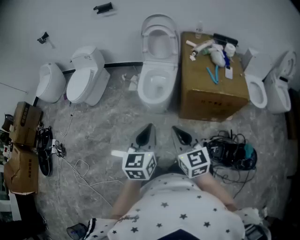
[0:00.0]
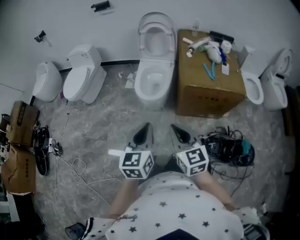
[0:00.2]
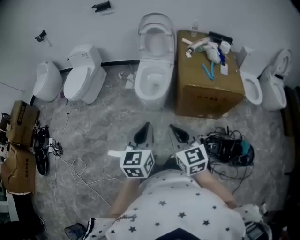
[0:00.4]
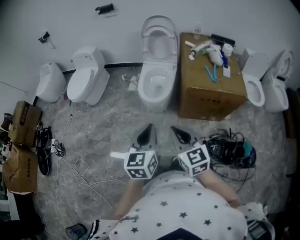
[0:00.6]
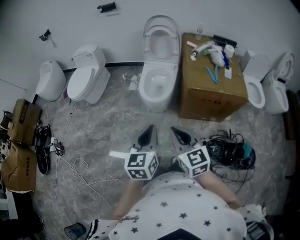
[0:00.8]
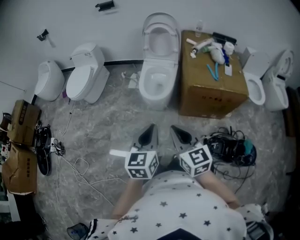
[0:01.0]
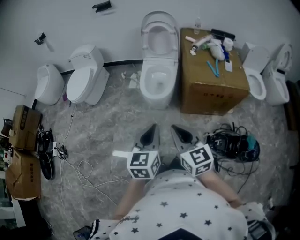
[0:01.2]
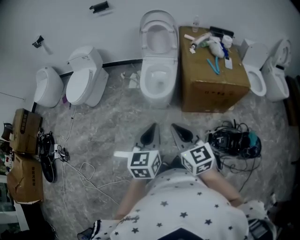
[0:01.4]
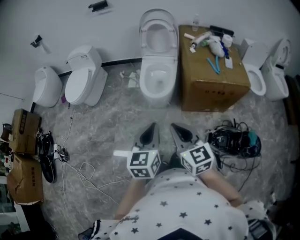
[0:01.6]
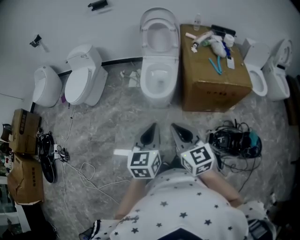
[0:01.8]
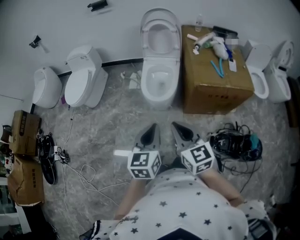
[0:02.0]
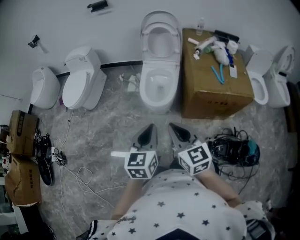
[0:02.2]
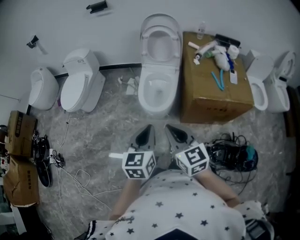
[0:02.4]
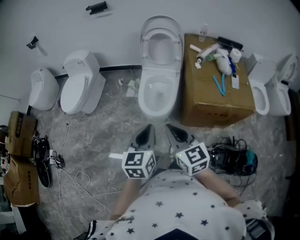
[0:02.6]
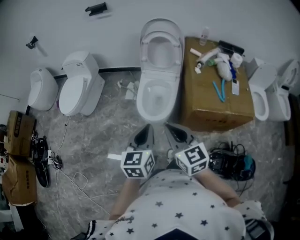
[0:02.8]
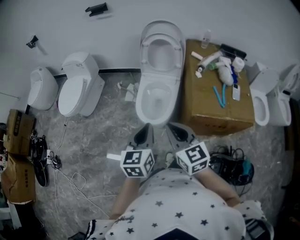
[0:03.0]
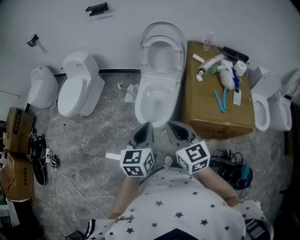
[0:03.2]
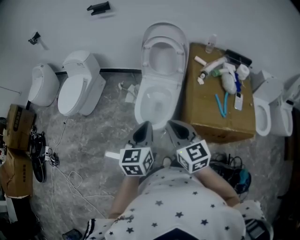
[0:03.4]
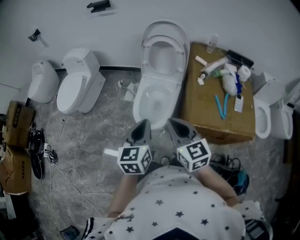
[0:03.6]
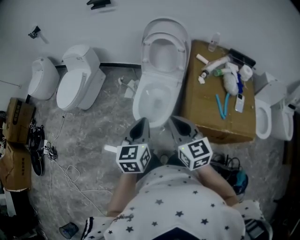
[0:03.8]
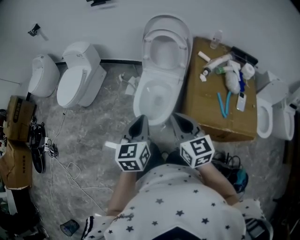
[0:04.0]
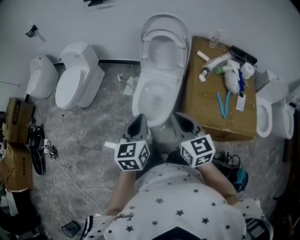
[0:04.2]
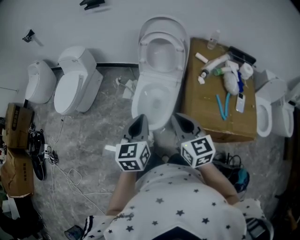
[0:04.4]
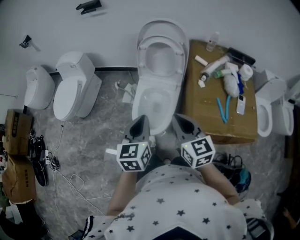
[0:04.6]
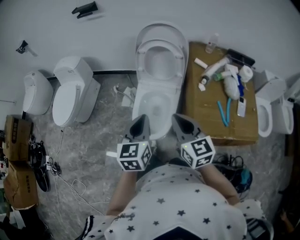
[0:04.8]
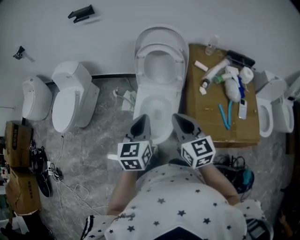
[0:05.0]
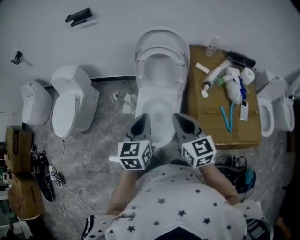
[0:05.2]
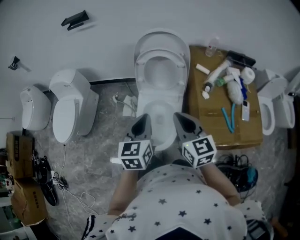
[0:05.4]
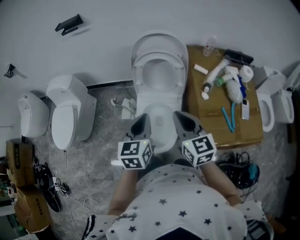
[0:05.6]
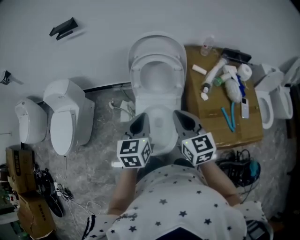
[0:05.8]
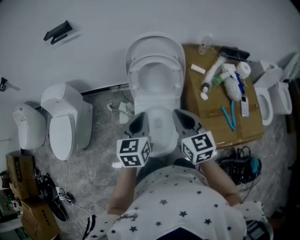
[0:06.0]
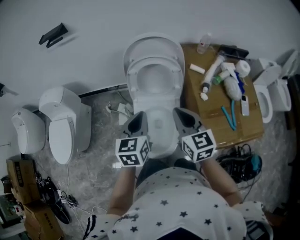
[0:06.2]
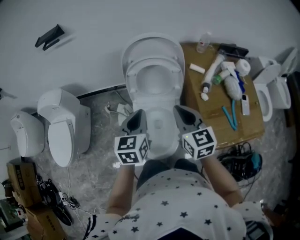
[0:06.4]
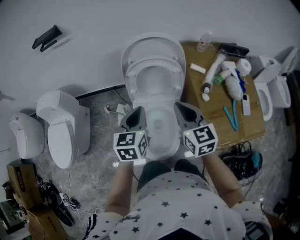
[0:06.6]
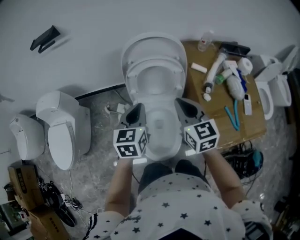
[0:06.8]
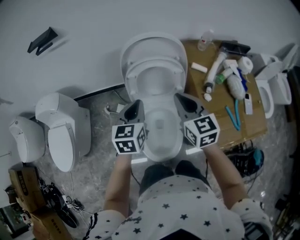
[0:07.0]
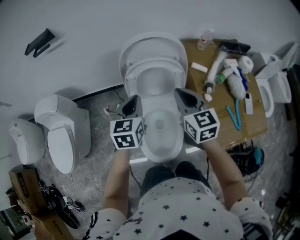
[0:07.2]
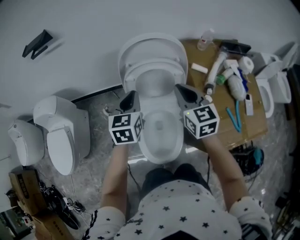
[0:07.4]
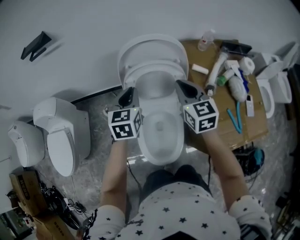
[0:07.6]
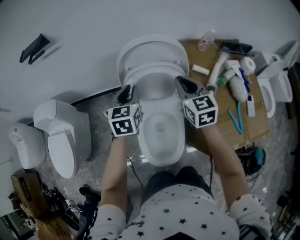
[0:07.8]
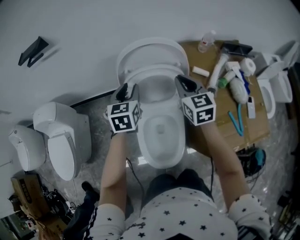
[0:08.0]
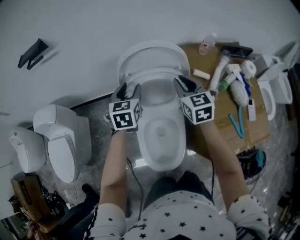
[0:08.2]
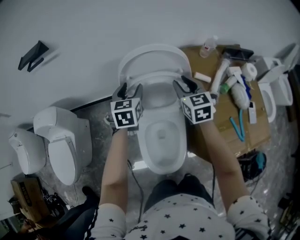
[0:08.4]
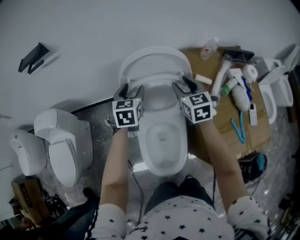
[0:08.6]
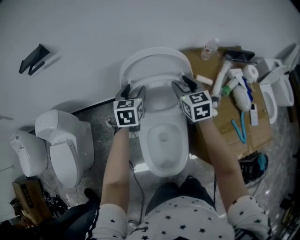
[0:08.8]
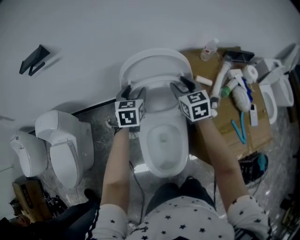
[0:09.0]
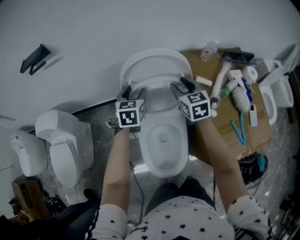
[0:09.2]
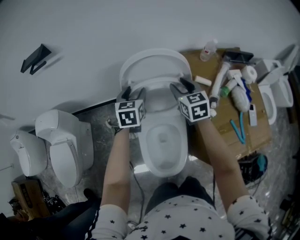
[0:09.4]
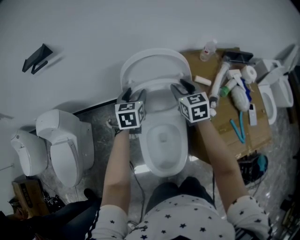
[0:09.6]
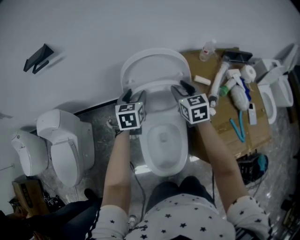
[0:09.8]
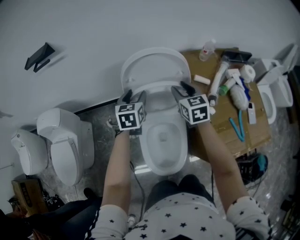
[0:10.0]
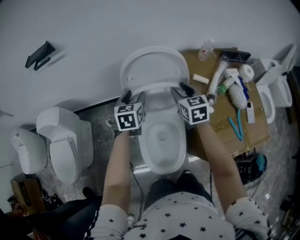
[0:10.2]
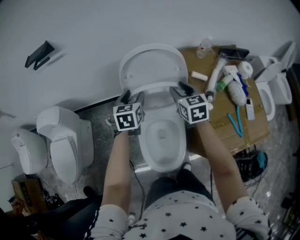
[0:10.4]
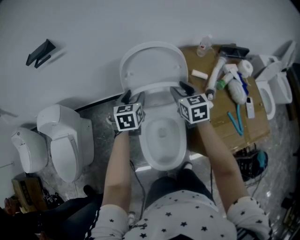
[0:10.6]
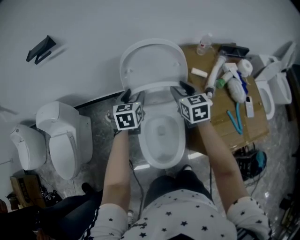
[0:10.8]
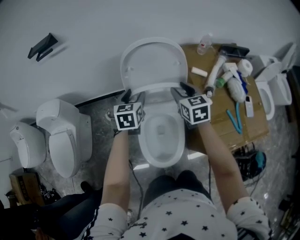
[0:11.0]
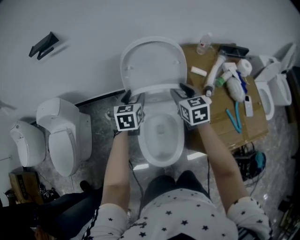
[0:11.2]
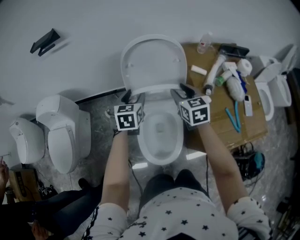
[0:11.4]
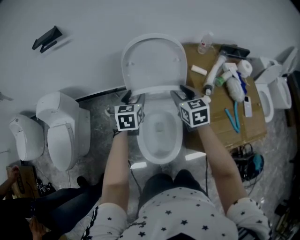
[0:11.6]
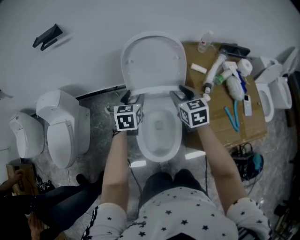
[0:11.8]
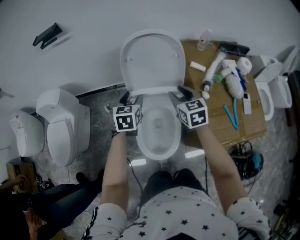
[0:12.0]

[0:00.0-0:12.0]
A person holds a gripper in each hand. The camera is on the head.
0:00.0 to 0:01.6: Both grippers travel together to the left, approximately 5 cm.
0:01.6 to 0:03.0: The grippers both shift forward by some 25 cm.
0:03.0 to 0:04.4: The left gripper travels forward by approximately 10 cm, while the right gripper is displaced forward and to the right by roughly 15 cm.
0:04.4 to 0:06.0: Both grippers move forward, about 25 cm.
0:06.0 to 0:07.6: The grippers both shift forward by approximately 20 cm.
0:07.6 to 0:09.0: The left gripper goes approximately 10 cm forward, and opens its fingers, while the right gripper goes approximately 10 cm forward and downward, and opens up.
0:09.0 to 0:10.4: Both grippers move backward, approximately 5 cm.
0:10.4 to 0:12.0: The grippers both shift backward by approximately 10 cm.

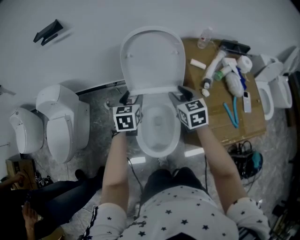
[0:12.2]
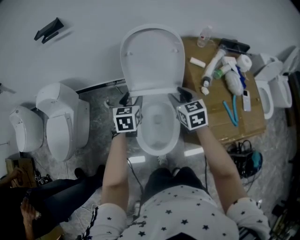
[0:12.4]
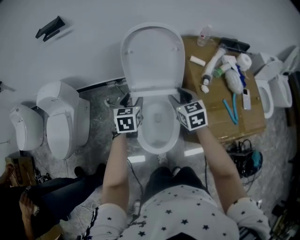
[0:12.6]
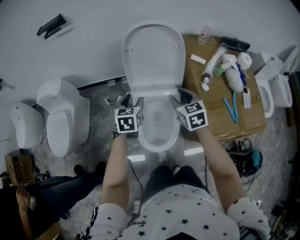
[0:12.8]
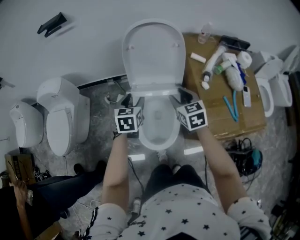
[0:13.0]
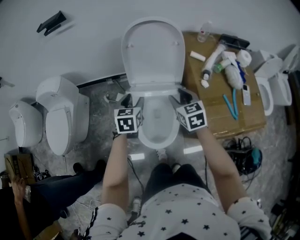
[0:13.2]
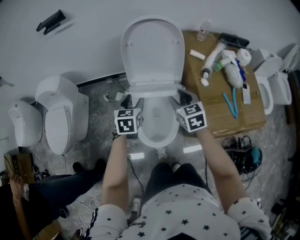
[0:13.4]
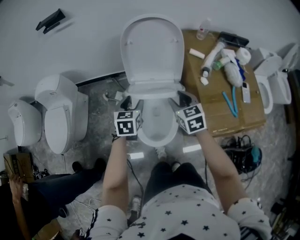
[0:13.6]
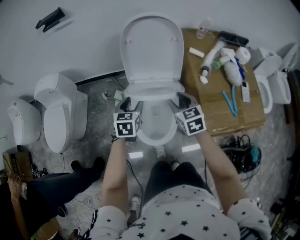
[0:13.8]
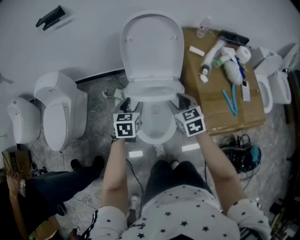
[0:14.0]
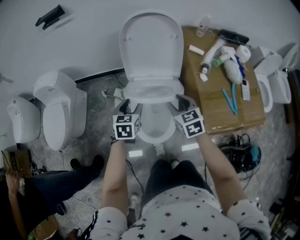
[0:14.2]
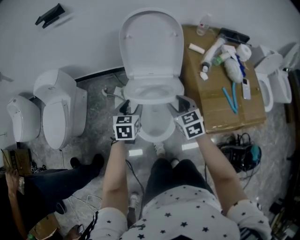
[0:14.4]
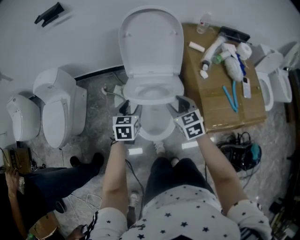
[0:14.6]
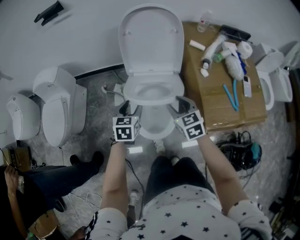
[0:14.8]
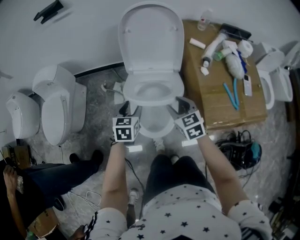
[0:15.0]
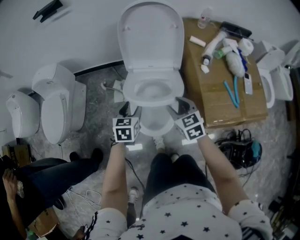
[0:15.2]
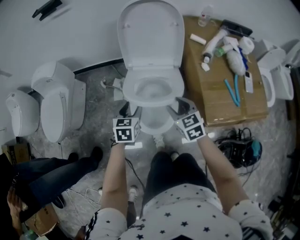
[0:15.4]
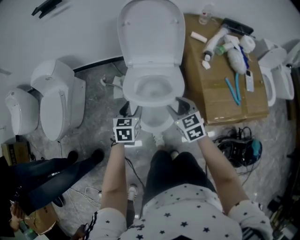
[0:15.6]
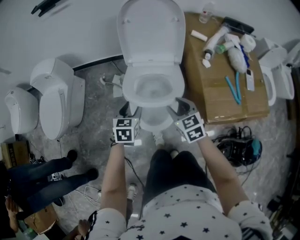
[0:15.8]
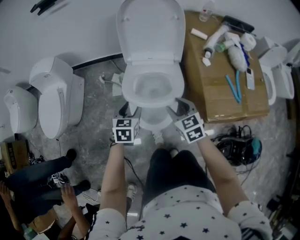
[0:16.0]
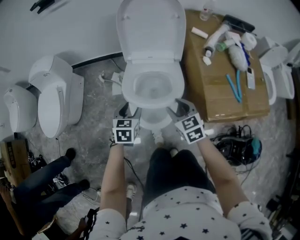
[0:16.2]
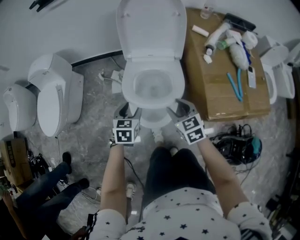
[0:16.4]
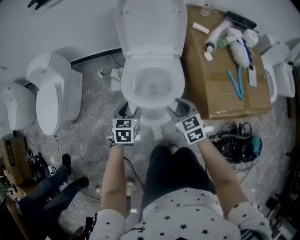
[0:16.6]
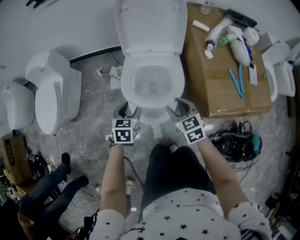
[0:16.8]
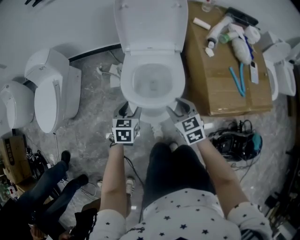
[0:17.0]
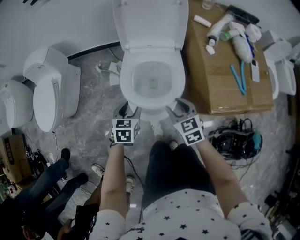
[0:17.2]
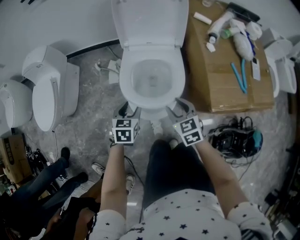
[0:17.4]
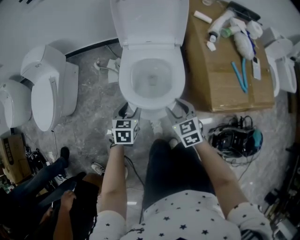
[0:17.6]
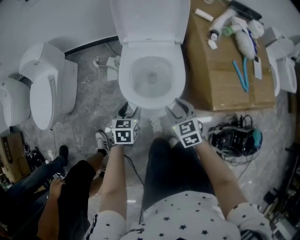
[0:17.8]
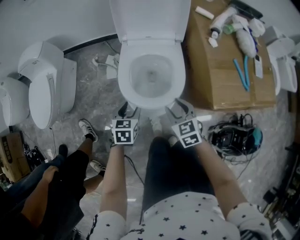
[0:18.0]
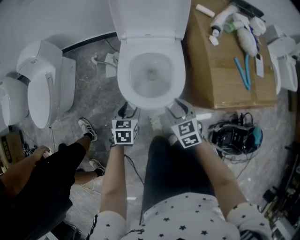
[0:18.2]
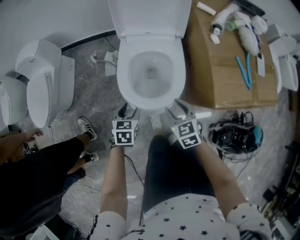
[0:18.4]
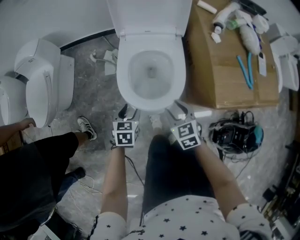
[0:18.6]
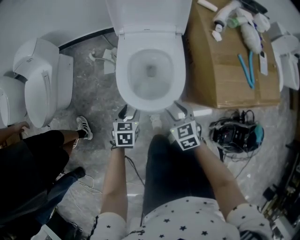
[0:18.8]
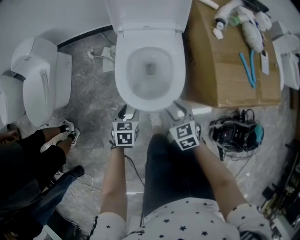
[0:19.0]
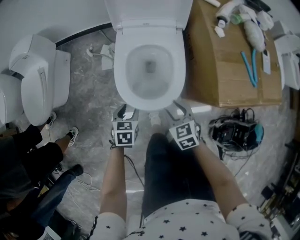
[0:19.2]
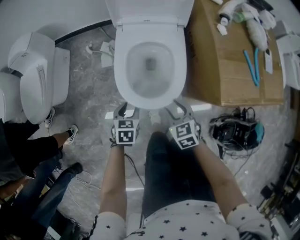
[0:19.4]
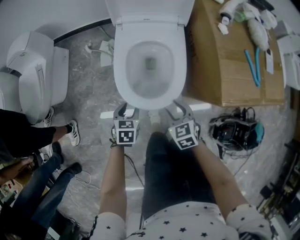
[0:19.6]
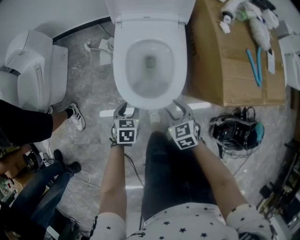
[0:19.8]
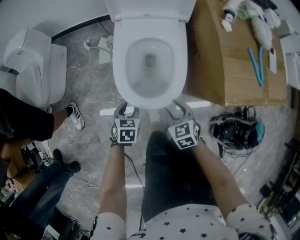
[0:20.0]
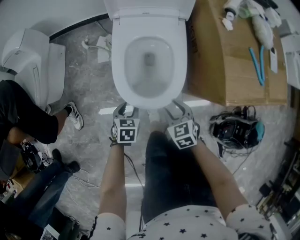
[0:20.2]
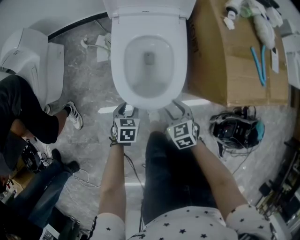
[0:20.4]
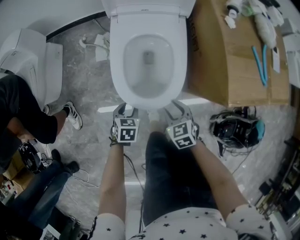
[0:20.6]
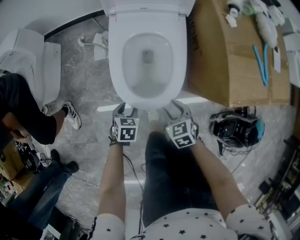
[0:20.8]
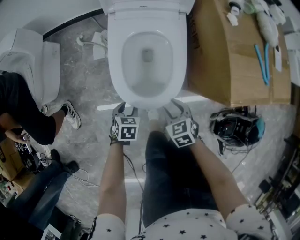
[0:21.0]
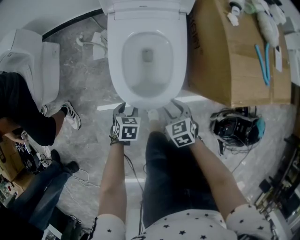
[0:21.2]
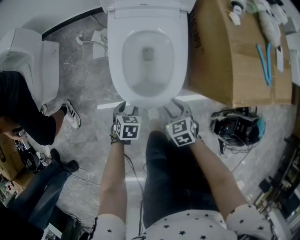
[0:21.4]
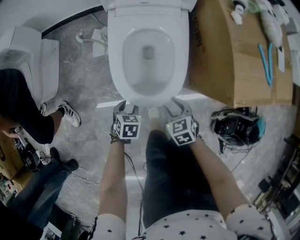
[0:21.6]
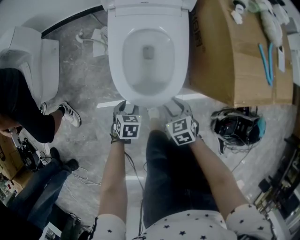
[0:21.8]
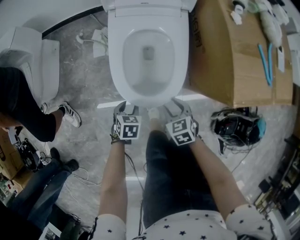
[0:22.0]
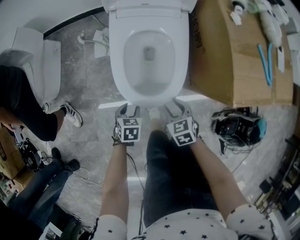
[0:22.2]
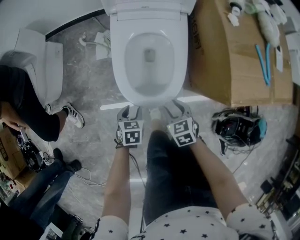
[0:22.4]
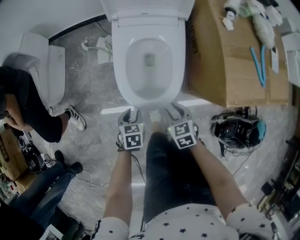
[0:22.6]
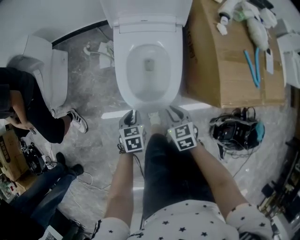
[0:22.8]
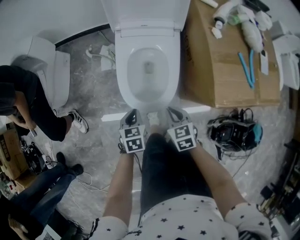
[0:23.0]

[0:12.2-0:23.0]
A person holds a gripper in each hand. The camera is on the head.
0:12.2 to 0:13.8: The grippers both shift backward by approximately 10 cm.
0:13.8 to 0:15.2: The left gripper shifts some 10 cm backward and downward; the right gripper is displaced backward by roughly 5 cm.
0:15.2 to 0:16.8: Both grippers move downward and backward, some 10 cm.
0:16.8 to 0:18.4: Both grippers travel together downward, about 10 cm.
0:18.4 to 0:20.0: The two grippers go about 10 cm downward.
0:20.0 to 0:21.4: Both grippers travel together downward, roughly 5 cm.
0:21.4 to 0:23.0: Both grippers move upward, some 10 cm. The right gripper closes its fingers, while the left gripper swivels approximately 20 degrees, and closes.

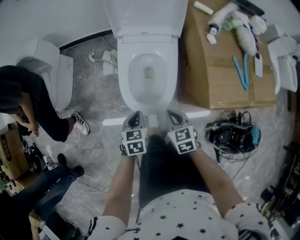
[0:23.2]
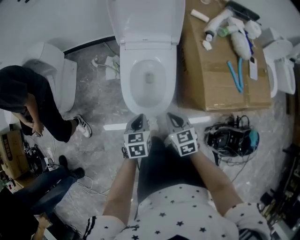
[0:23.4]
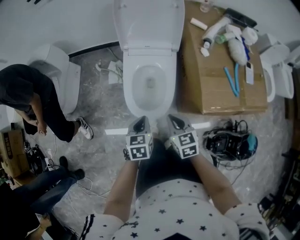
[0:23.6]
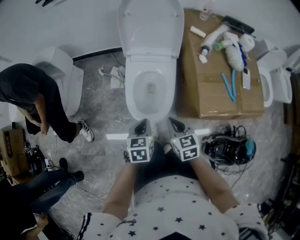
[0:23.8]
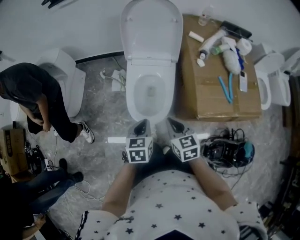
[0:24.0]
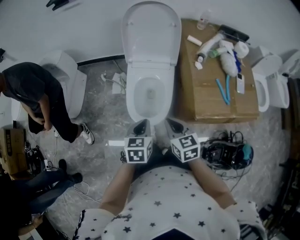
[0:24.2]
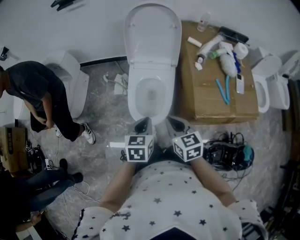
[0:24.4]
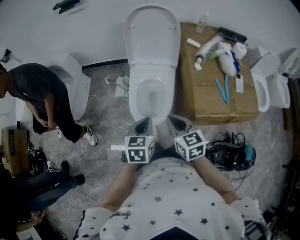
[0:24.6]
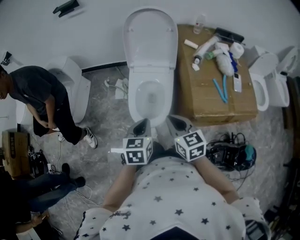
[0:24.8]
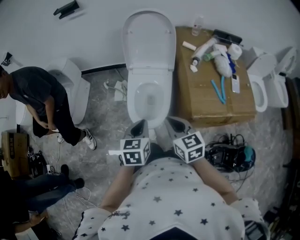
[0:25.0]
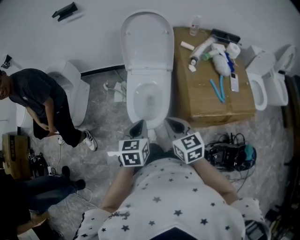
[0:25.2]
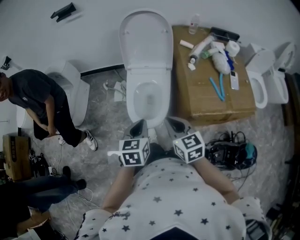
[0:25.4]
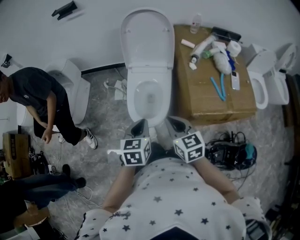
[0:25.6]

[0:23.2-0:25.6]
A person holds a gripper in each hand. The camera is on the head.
0:23.2 to 0:24.4: Both grippers move upward, roughly 20 cm.
0:24.4 to 0:25.6: The grippers stay close to where they were, moving slightly.
